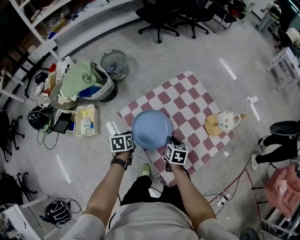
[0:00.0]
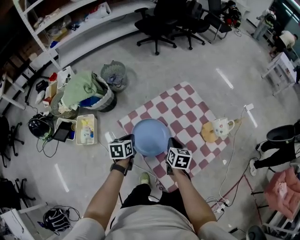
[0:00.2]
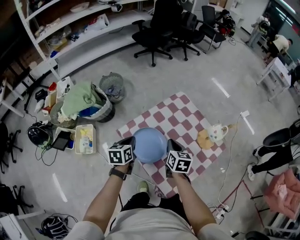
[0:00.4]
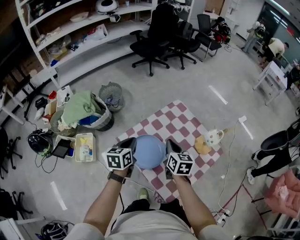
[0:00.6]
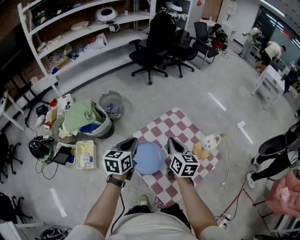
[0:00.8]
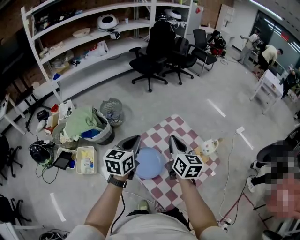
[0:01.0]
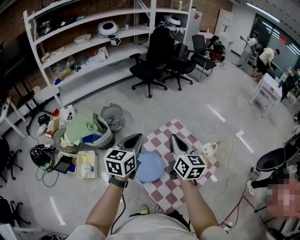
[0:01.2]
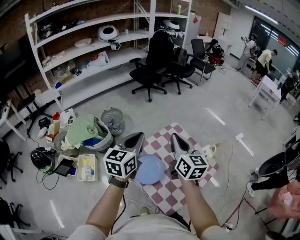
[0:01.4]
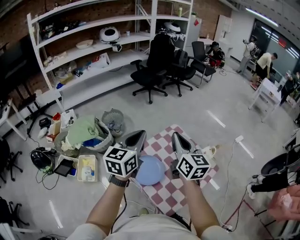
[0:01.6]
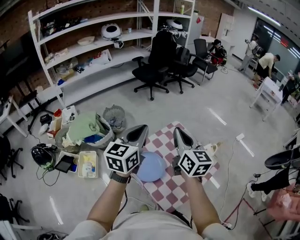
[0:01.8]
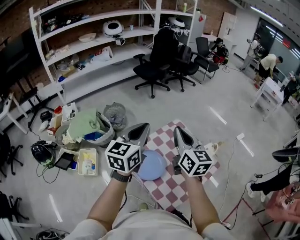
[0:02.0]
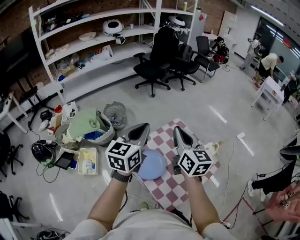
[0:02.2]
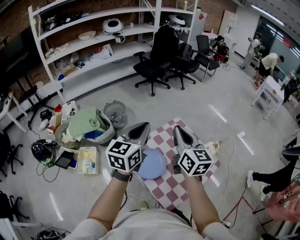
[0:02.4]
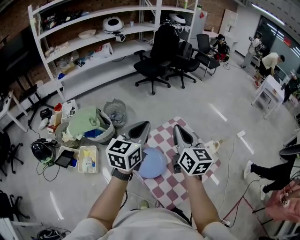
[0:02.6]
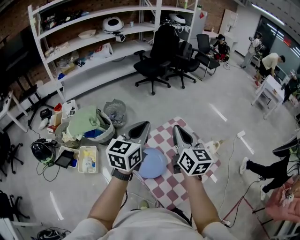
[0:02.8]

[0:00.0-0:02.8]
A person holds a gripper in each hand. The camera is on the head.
0:00.0 to 0:01.4: Both grippers travel together upward, roughly 40 cm. The left gripper tilts its fingers approximately 50 degrees upward. Meanwhile the right gripper tips its fingers upward by some 50 degrees.
0:01.4 to 0:02.8: There are only small adjustments of the grippers.

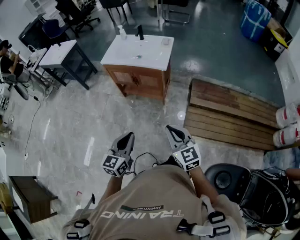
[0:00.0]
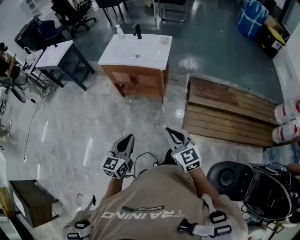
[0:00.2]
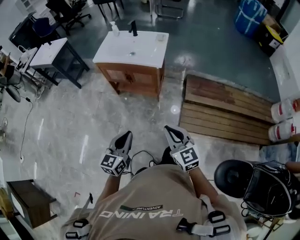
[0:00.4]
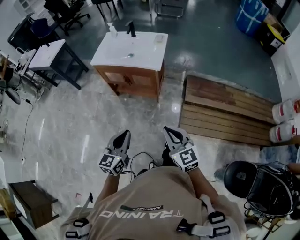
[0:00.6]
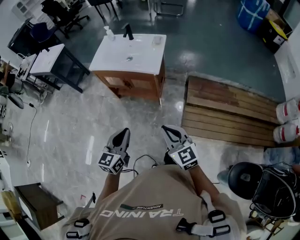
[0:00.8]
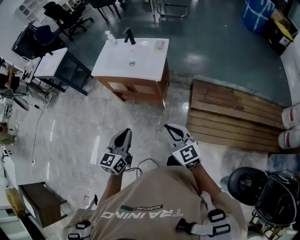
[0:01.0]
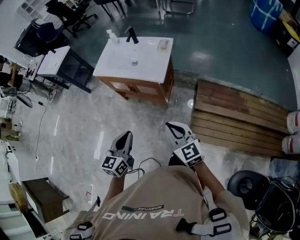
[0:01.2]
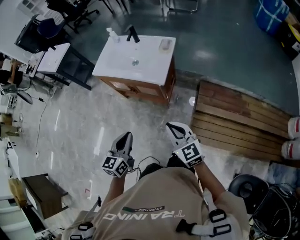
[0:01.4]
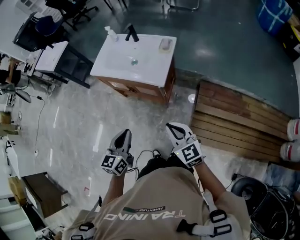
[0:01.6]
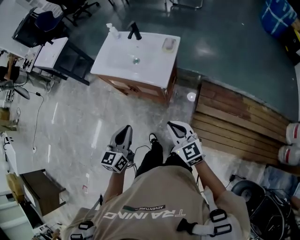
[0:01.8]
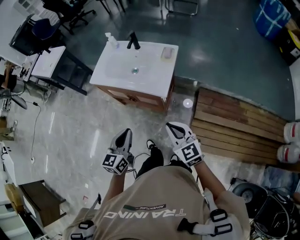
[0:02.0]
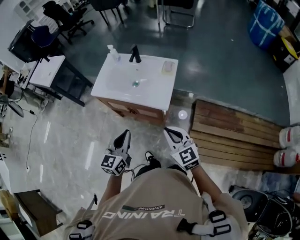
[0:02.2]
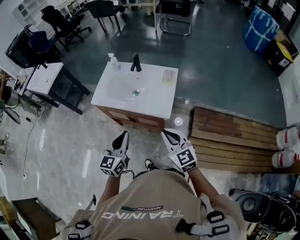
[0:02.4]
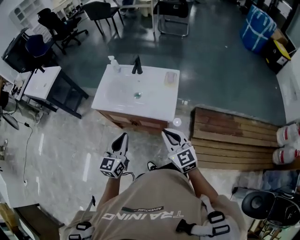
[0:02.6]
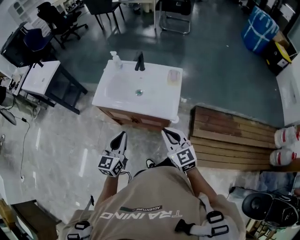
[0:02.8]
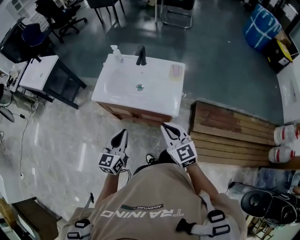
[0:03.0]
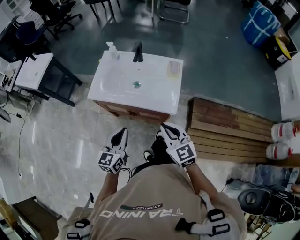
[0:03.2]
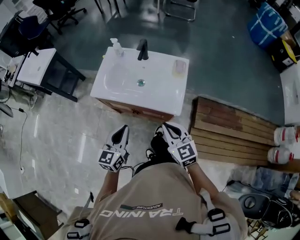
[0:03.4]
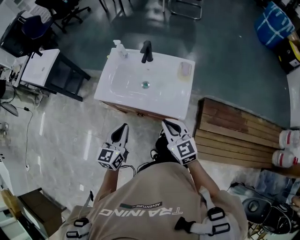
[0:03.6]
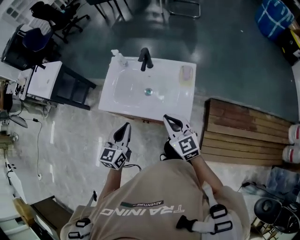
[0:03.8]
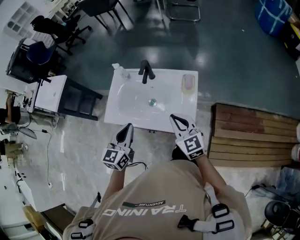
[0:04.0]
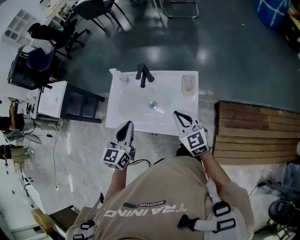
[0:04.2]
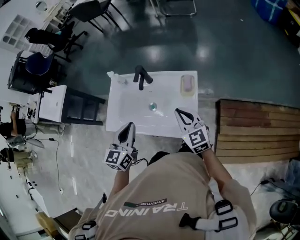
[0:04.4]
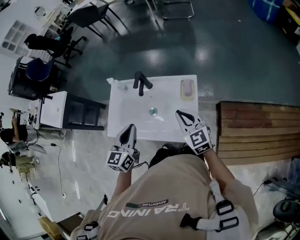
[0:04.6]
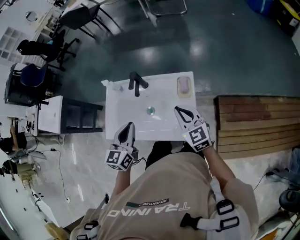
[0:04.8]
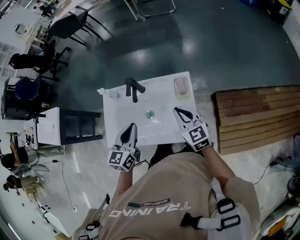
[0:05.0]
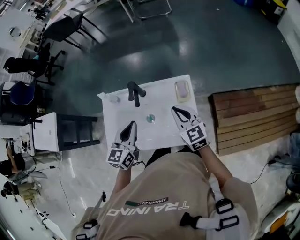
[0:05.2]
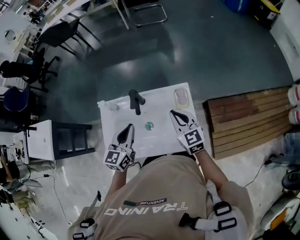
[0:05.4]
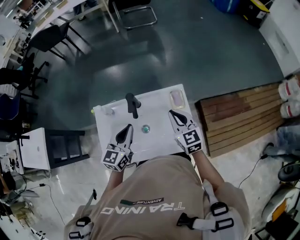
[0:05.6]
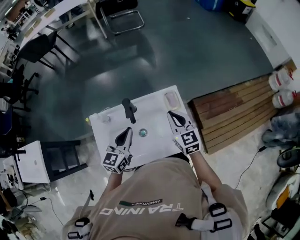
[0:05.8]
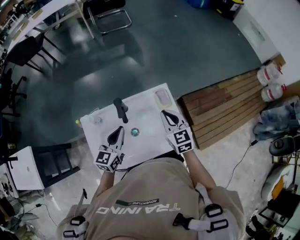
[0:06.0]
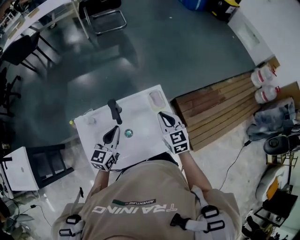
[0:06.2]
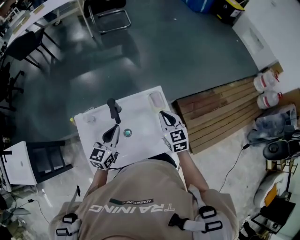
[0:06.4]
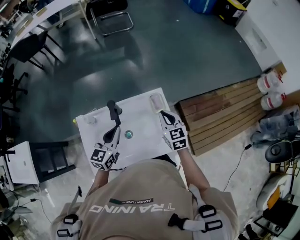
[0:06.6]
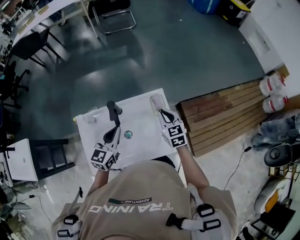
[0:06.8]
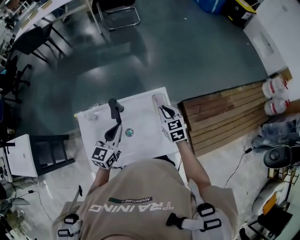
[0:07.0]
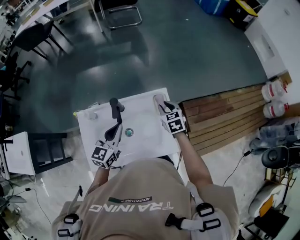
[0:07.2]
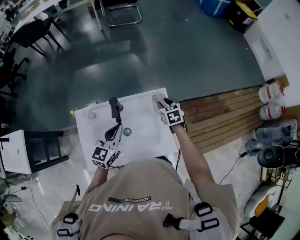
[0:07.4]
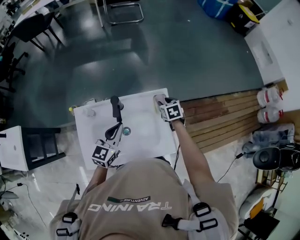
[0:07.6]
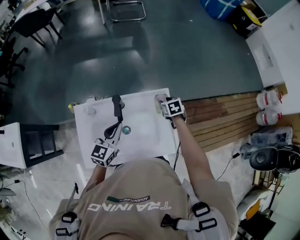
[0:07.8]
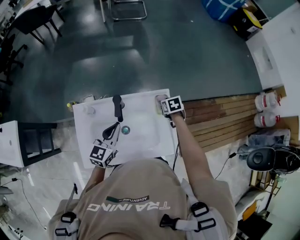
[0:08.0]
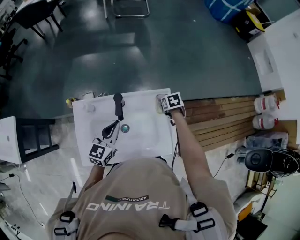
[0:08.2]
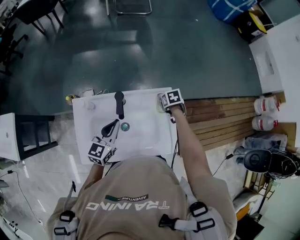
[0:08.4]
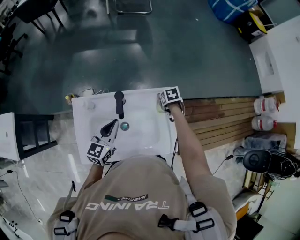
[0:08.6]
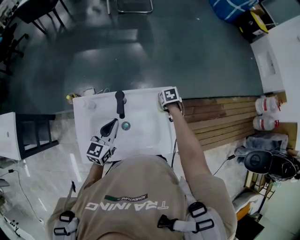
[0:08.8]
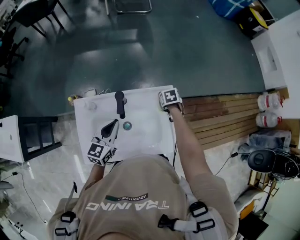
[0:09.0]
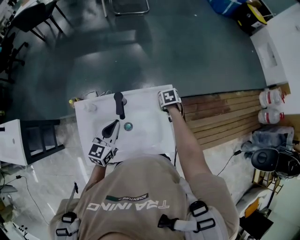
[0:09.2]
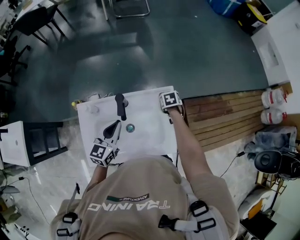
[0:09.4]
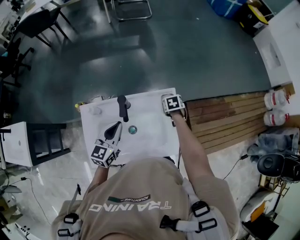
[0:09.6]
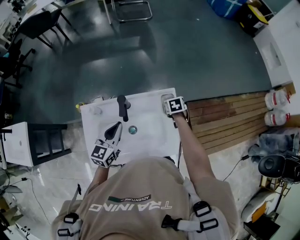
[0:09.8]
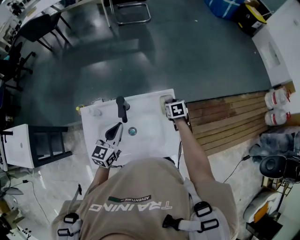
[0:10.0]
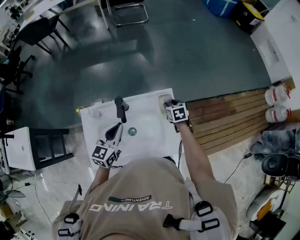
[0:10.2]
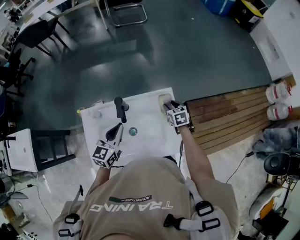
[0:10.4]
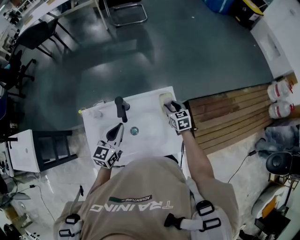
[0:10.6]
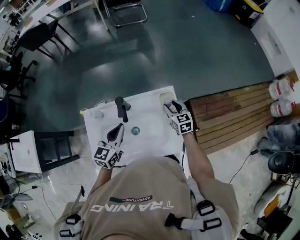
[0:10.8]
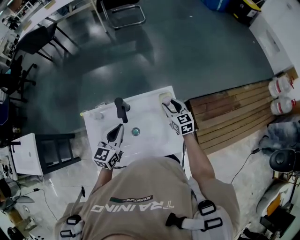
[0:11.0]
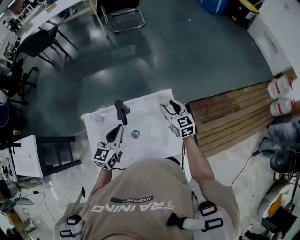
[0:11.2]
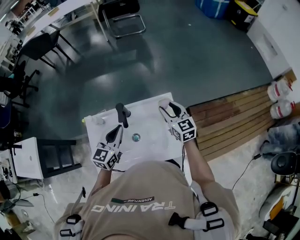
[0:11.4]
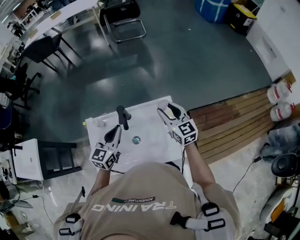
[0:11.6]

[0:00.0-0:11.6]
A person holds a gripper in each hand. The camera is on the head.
0:00.0 to 0:01.4: Both grippers move forward, some 20 cm.
0:01.4 to 0:02.8: The two grippers go approximately 25 cm forward and to the left.
0:02.8 to 0:04.4: The two grippers go roughly 20 cm forward.
0:04.4 to 0:05.8: The left gripper shifts by about 15 cm, and changes its angle by roughly 30 degrees. Meanwhile the right gripper shifts by approximately 10 cm, and changes its angle by approximately 30 degrees.
0:05.8 to 0:07.2: The right gripper travels downward and forward by approximately 15 cm, and turns by about 20 degrees.
0:07.2 to 0:08.8: The right gripper travels downward by roughly 10 cm, points its fingers approximately 30 degrees further downward, and opens. Meanwhile the left gripper changes place by roughly 5 cm.
0:08.8 to 0:10.2: The right gripper changes its angle by approximately 30 degrees.
0:10.2 to 0:11.6: The right gripper moves upward, about 20 cm, and tilts its fingers some 40 degrees upward.

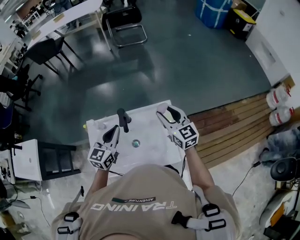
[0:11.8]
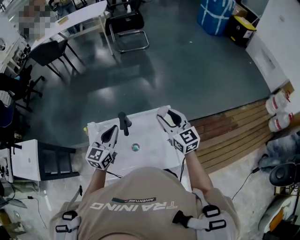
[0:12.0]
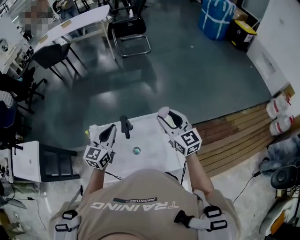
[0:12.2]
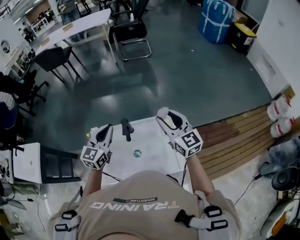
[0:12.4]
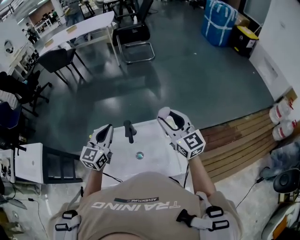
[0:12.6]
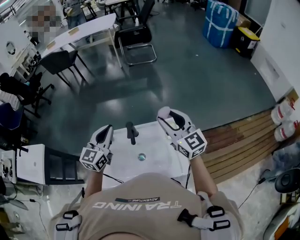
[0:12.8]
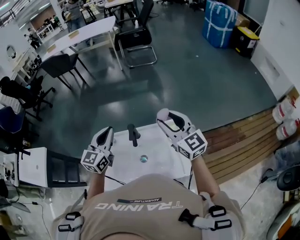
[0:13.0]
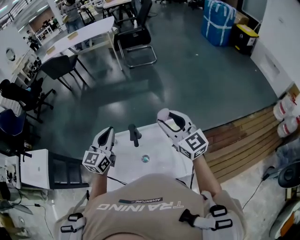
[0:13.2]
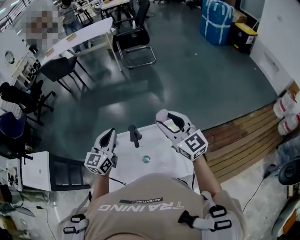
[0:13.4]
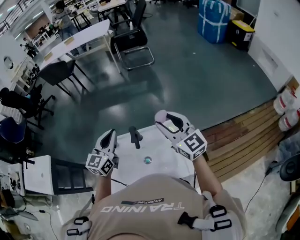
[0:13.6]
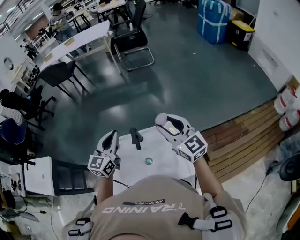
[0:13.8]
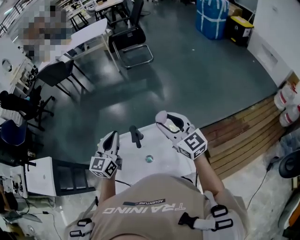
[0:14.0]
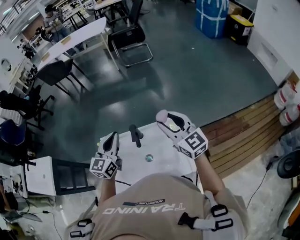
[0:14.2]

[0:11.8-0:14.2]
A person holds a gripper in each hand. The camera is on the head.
0:11.8 to 0:13.0: The two grippers go approximately 10 cm upward.
0:13.0 to 0:14.2: The grippers make only small movements.

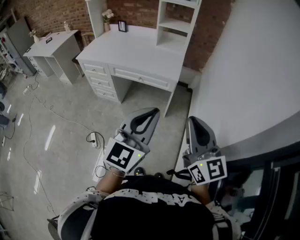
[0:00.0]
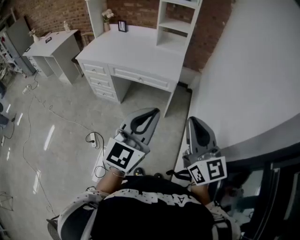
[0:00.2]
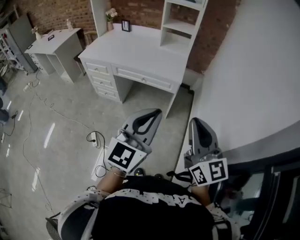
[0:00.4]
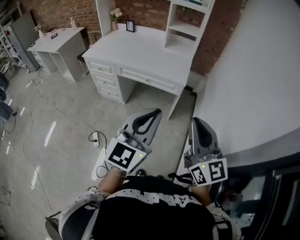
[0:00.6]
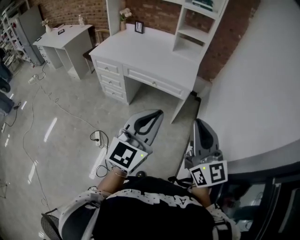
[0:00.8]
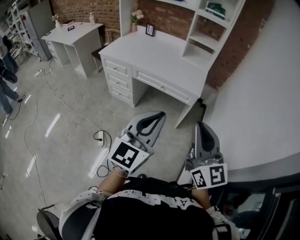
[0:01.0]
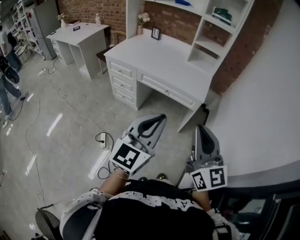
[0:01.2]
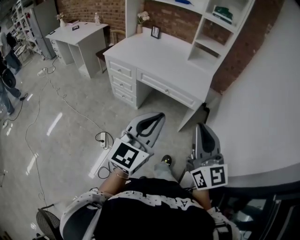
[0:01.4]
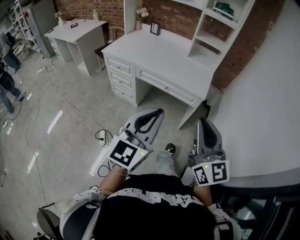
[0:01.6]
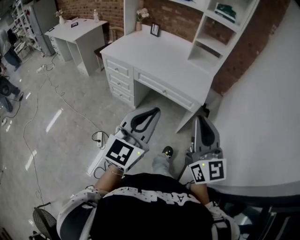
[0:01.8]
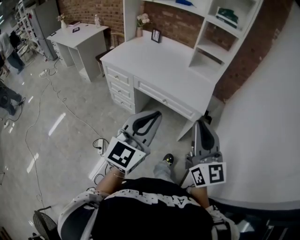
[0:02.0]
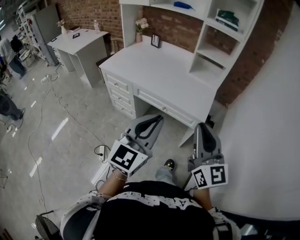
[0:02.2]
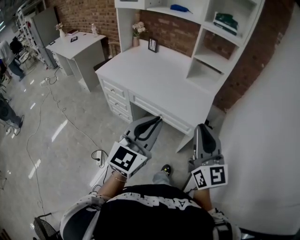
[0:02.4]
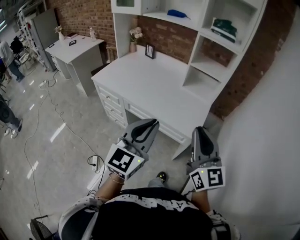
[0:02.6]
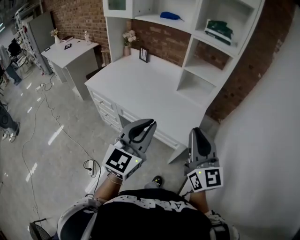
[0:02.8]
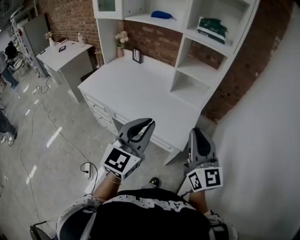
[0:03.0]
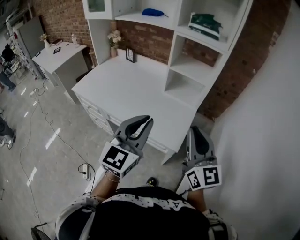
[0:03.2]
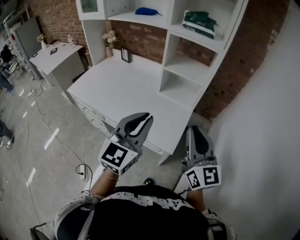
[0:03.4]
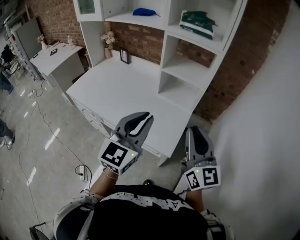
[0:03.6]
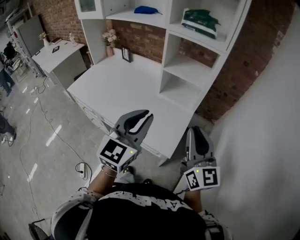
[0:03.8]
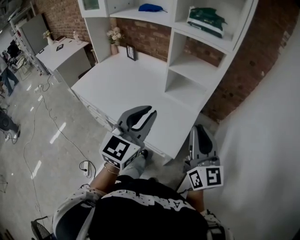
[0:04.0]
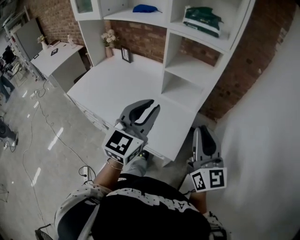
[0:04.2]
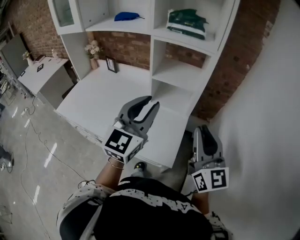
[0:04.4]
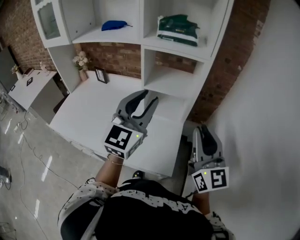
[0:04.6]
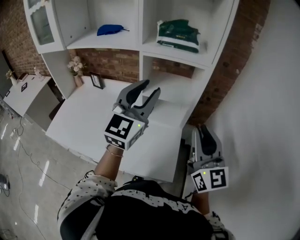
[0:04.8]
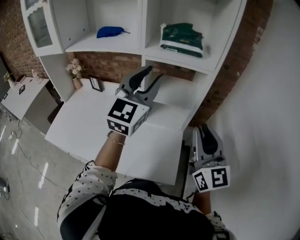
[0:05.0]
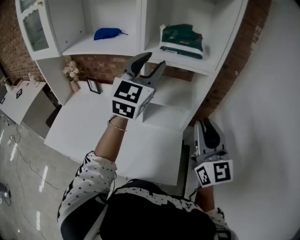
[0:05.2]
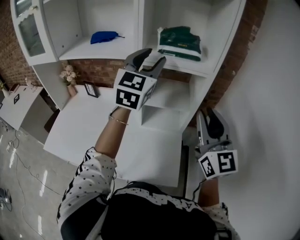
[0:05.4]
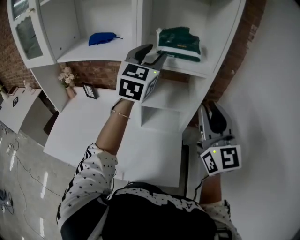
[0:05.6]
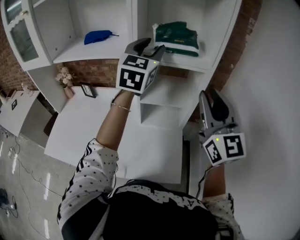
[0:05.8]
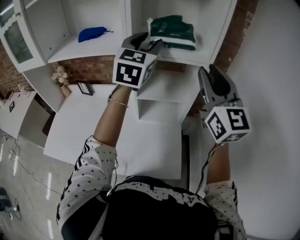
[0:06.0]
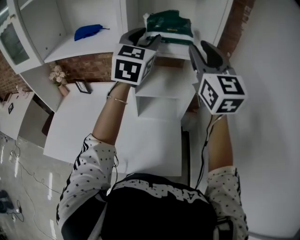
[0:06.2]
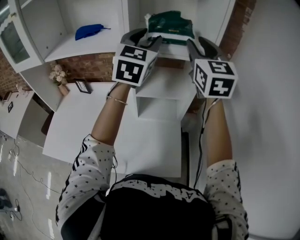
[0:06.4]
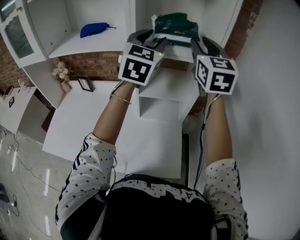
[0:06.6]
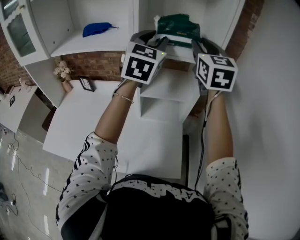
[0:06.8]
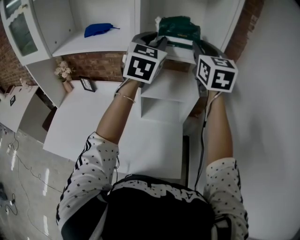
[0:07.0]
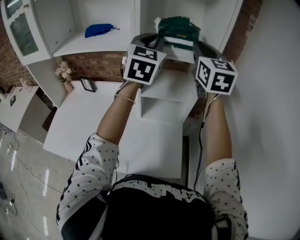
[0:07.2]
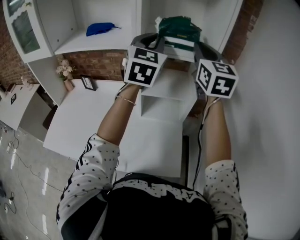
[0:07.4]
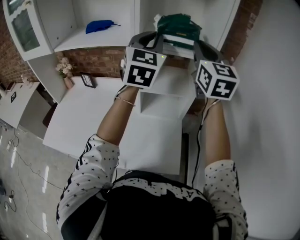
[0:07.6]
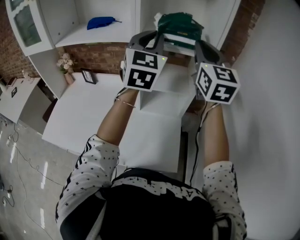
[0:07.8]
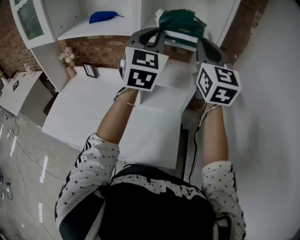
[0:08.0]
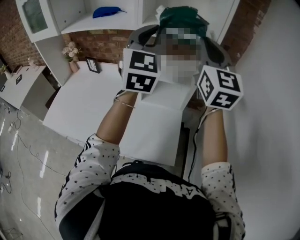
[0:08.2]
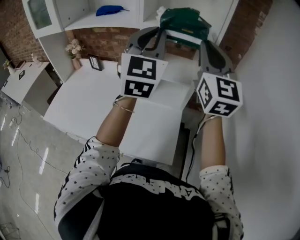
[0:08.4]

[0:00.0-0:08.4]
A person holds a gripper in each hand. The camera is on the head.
0:00.0 to 0:01.4: The grippers both shift to the left by roughly 10 cm.
0:01.4 to 0:02.8: Both grippers move forward, about 30 cm.
0:02.8 to 0:04.2: The two grippers go approximately 20 cm forward and to the right.
0:04.2 to 0:05.6: The right gripper shifts roughly 20 cm forward and upward, and swivels roughly 20 degrees. The left gripper heads forward and upward, covering some 35 cm, and opens up.
0:05.6 to 0:07.0: The right gripper travels forward by roughly 20 cm.
0:07.0 to 0:08.4: Both grippers travel together backward, approximately 15 cm.
